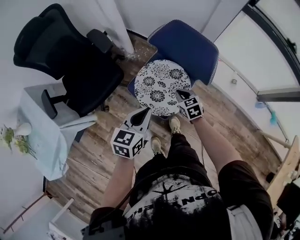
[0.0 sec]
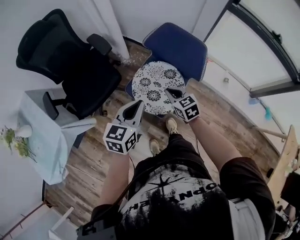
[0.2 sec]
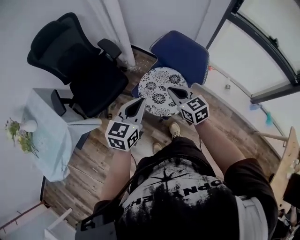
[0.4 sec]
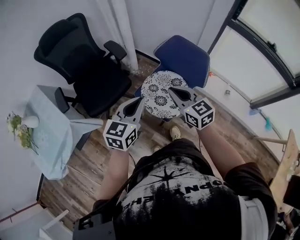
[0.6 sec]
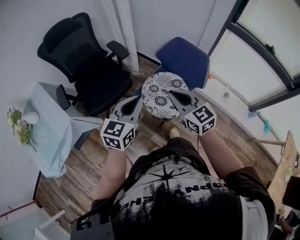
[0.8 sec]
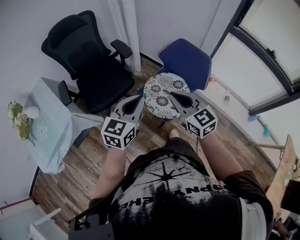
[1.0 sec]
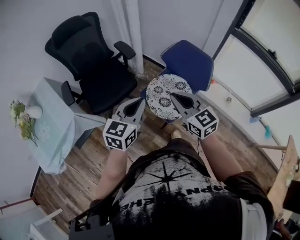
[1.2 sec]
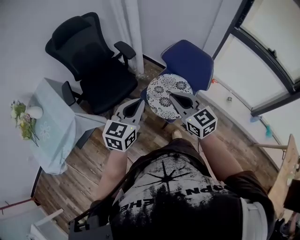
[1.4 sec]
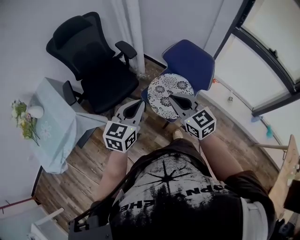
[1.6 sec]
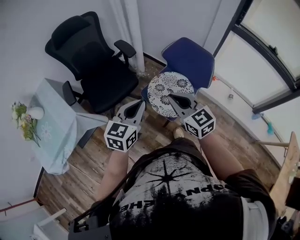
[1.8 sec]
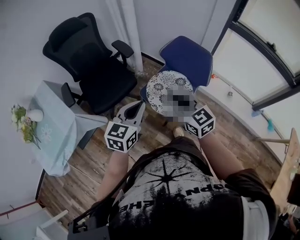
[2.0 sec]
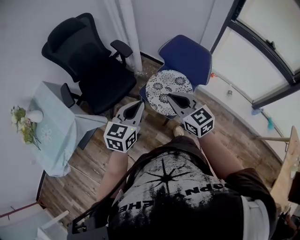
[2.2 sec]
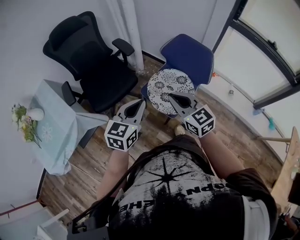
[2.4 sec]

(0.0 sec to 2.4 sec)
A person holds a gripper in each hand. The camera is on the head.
0.0 sec - 1.2 sec: The right gripper moves upward, backward and to the left, some 40 cm, and points its fingers approximately 40 degrees further upward, while the left gripper shifts roughly 20 cm upward, to the left and backward, and turns by some 20 degrees.
1.2 sec - 2.4 sec: The grippers stay close to where they were, moving slightly.

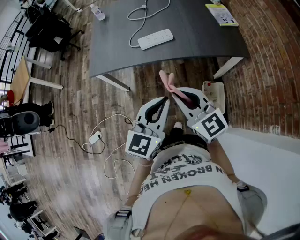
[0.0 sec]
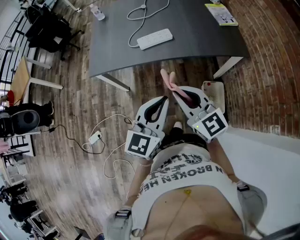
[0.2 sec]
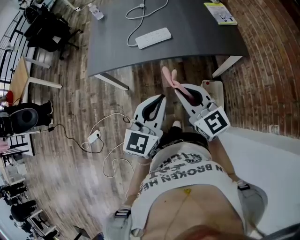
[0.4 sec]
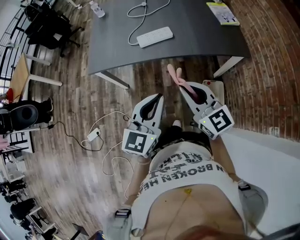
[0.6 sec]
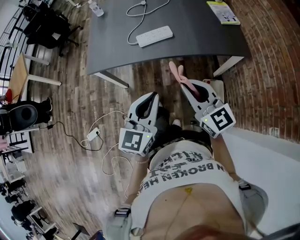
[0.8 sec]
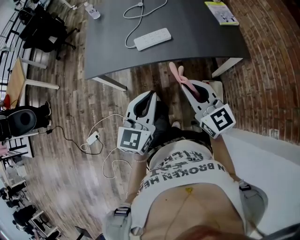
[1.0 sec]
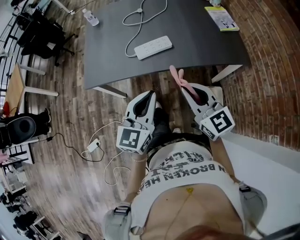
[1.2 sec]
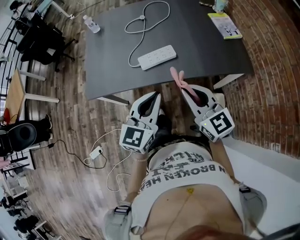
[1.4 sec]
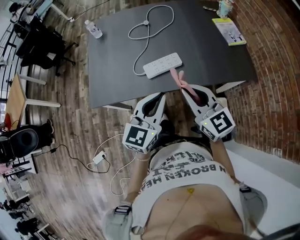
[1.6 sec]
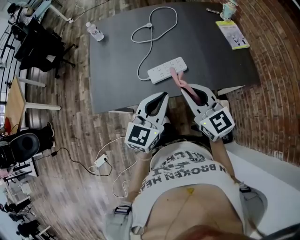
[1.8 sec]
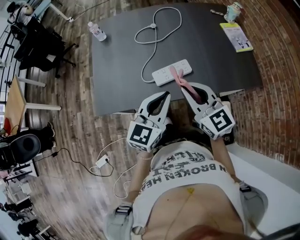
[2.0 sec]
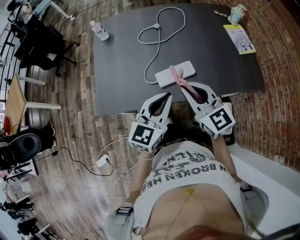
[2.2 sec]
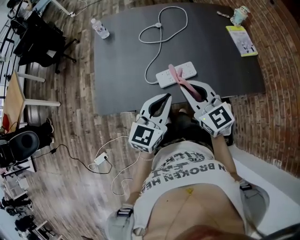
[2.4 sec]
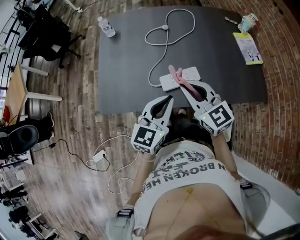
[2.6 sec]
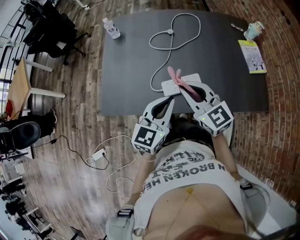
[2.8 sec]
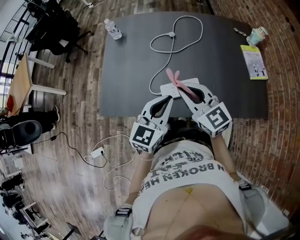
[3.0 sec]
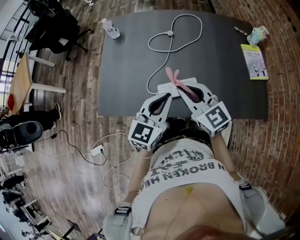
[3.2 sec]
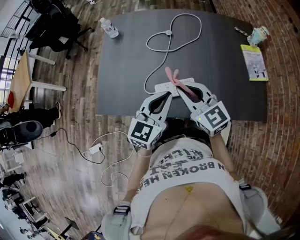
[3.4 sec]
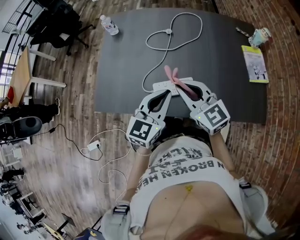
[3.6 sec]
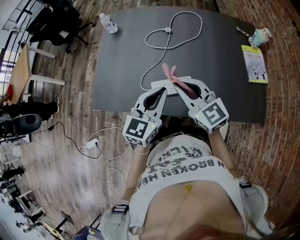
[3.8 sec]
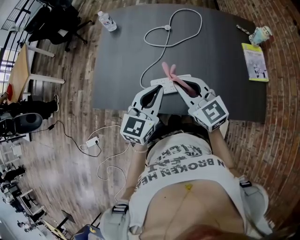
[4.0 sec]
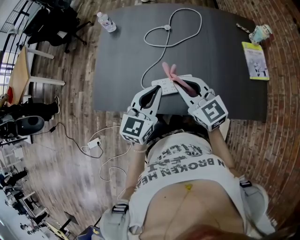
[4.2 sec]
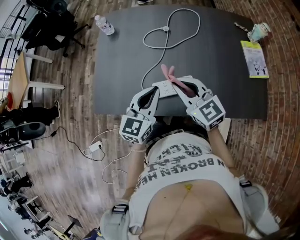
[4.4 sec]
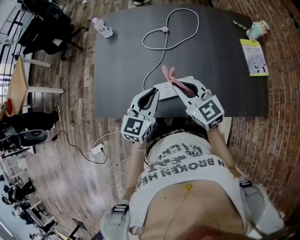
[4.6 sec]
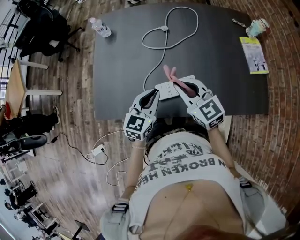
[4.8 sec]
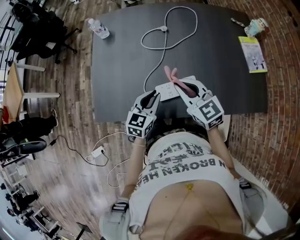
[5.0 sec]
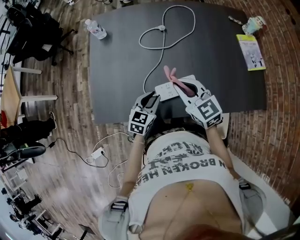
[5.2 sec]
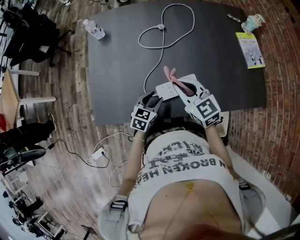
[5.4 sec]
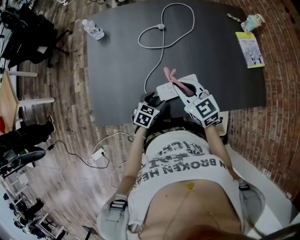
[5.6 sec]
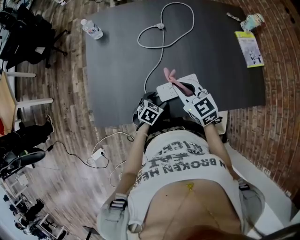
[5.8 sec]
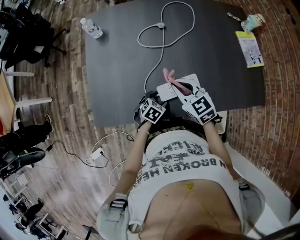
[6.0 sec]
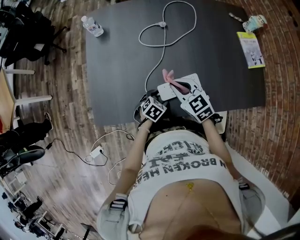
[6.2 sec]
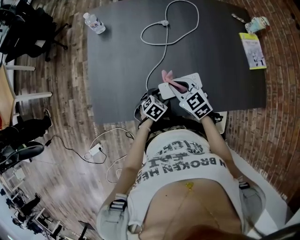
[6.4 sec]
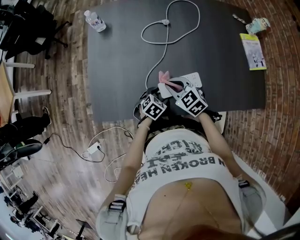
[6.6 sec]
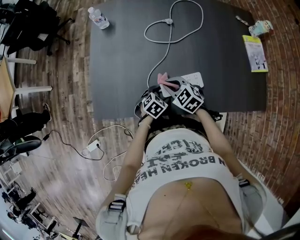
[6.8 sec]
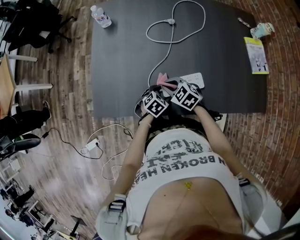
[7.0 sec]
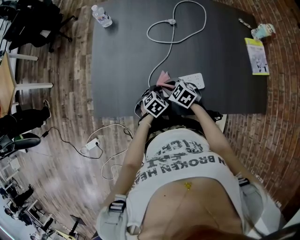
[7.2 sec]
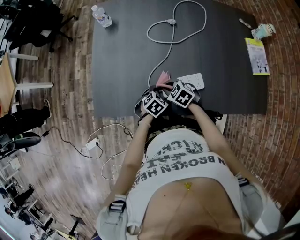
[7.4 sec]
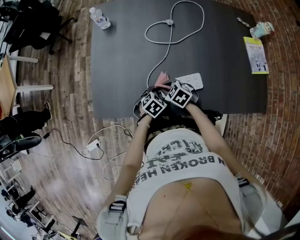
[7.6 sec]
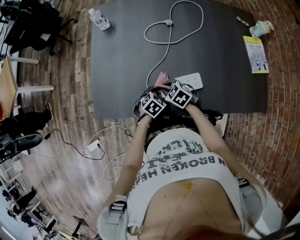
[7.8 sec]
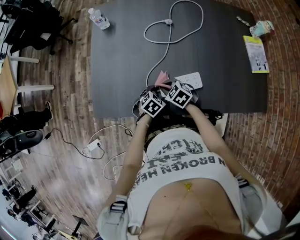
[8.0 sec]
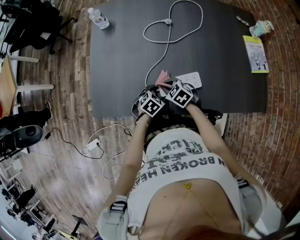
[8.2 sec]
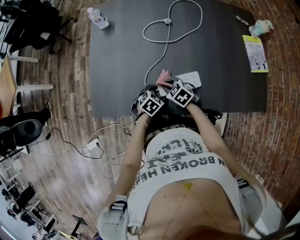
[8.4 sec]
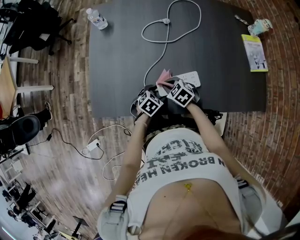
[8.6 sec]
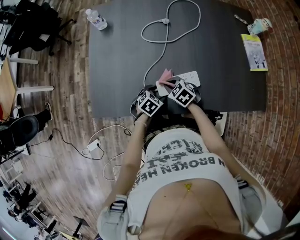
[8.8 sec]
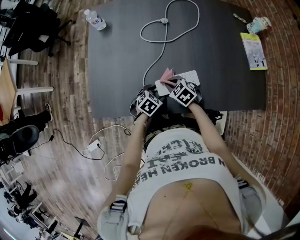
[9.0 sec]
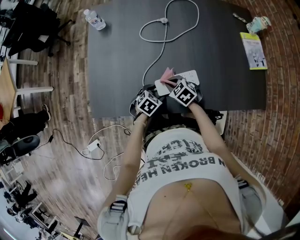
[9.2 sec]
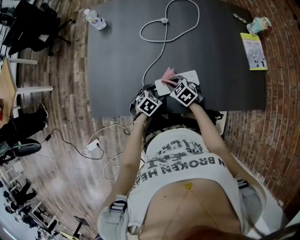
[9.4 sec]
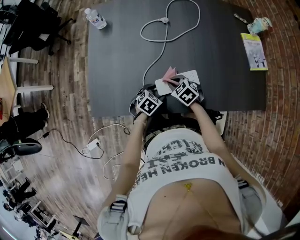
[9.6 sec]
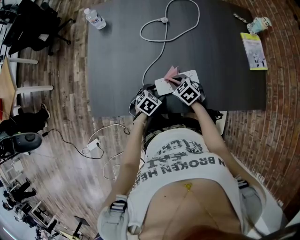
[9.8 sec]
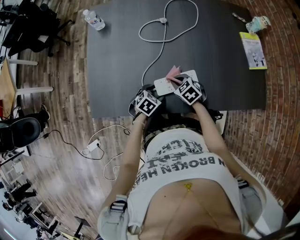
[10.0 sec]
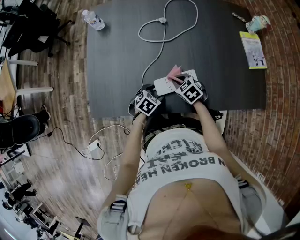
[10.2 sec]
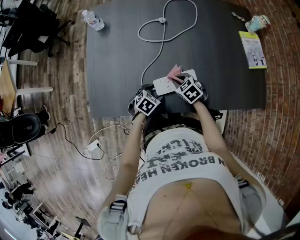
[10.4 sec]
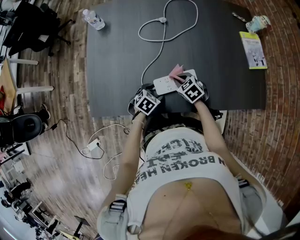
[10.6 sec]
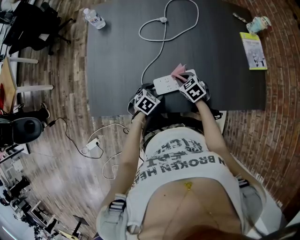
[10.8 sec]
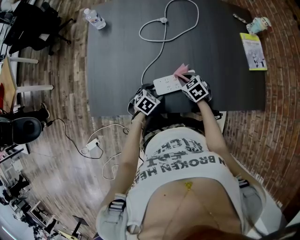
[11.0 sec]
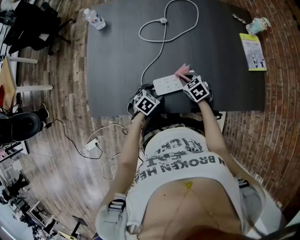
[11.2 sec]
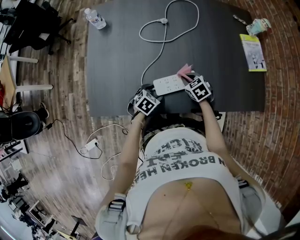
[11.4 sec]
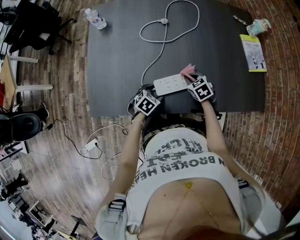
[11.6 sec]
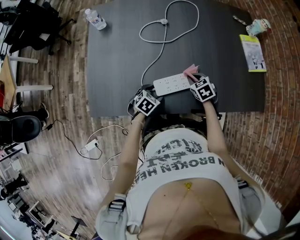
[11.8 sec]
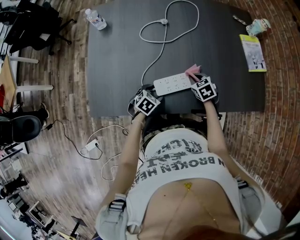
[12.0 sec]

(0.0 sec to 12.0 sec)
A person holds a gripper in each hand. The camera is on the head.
0.0 sec - 1.6 sec: Both grippers move forward, roughly 25 cm.
1.6 sec - 3.0 sec: Both grippers travel together forward, roughly 15 cm.
3.0 sec - 4.4 sec: The right gripper shifts by some 5 cm, while the left gripper changes place by about 5 cm.
4.4 sec - 6.0 sec: The right gripper moves downward and to the left, approximately 10 cm; the left gripper goes roughly 30 cm downward, points its fingers about 40 degrees further downward, and opens.
6.0 sec - 7.6 sec: The right gripper moves downward, about 15 cm, and swivels about 30 degrees.
7.6 sec - 9.0 sec: There are only small adjustments of the grippers.
9.0 sec - 10.4 sec: The right gripper shifts by about 5 cm.
10.4 sec - 12.0 sec: The right gripper heads to the right, covering approximately 10 cm.

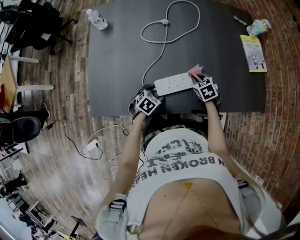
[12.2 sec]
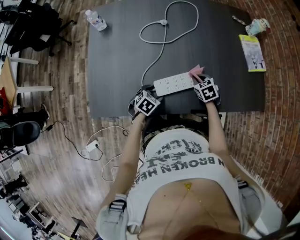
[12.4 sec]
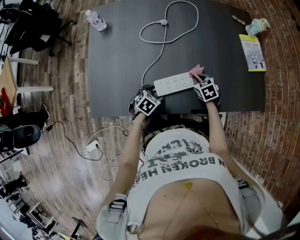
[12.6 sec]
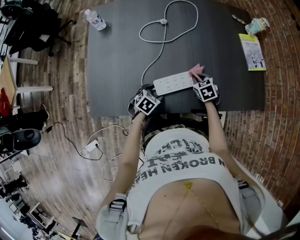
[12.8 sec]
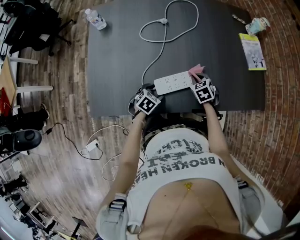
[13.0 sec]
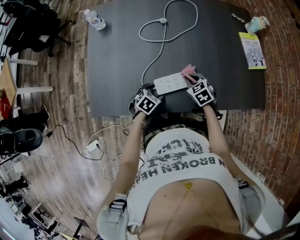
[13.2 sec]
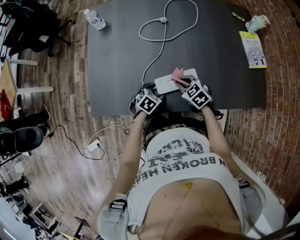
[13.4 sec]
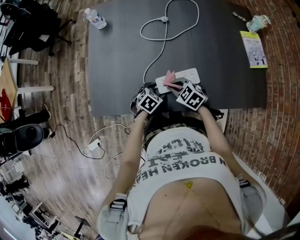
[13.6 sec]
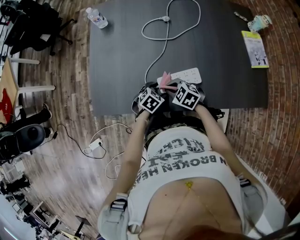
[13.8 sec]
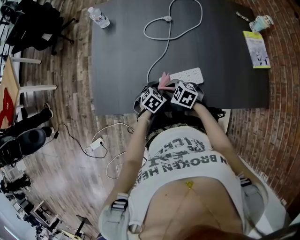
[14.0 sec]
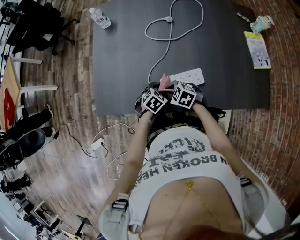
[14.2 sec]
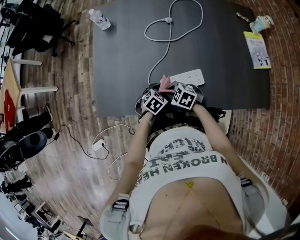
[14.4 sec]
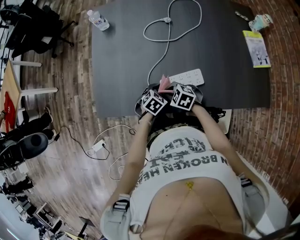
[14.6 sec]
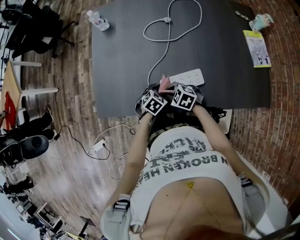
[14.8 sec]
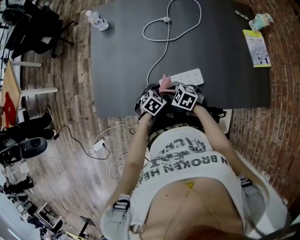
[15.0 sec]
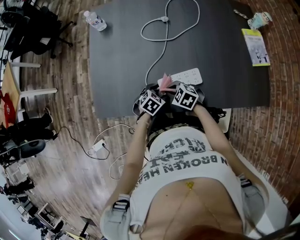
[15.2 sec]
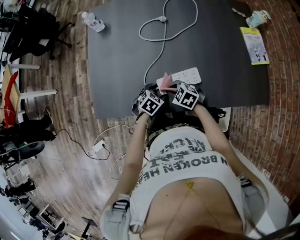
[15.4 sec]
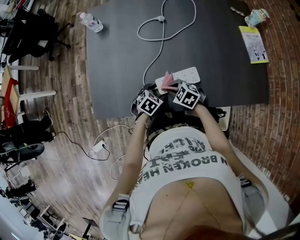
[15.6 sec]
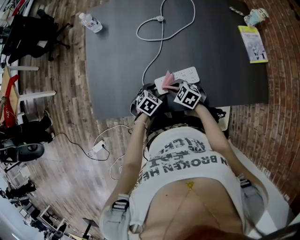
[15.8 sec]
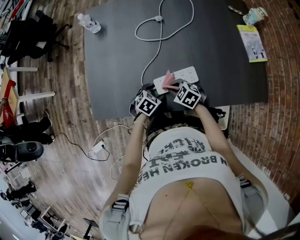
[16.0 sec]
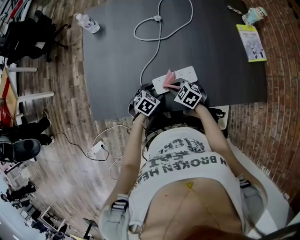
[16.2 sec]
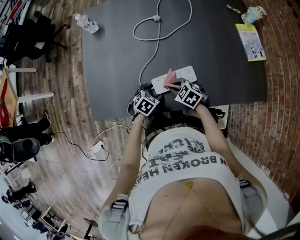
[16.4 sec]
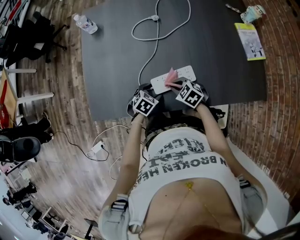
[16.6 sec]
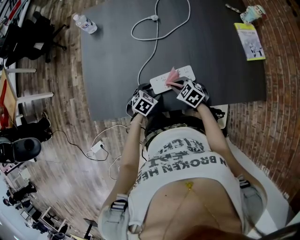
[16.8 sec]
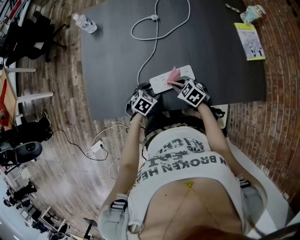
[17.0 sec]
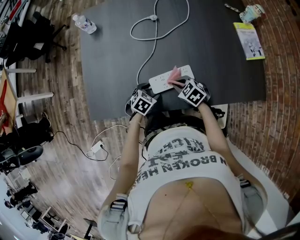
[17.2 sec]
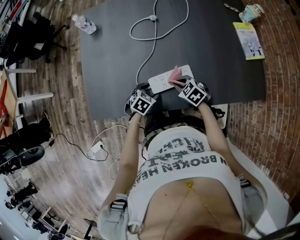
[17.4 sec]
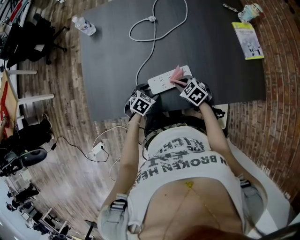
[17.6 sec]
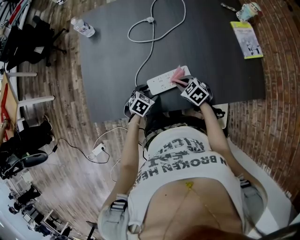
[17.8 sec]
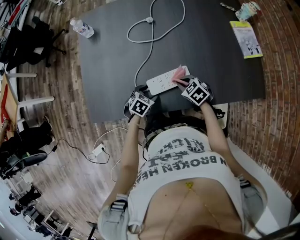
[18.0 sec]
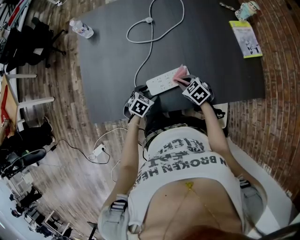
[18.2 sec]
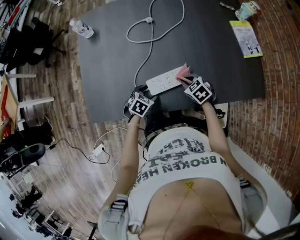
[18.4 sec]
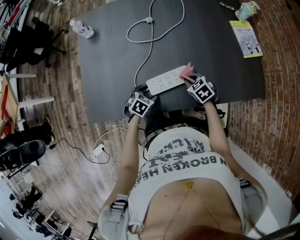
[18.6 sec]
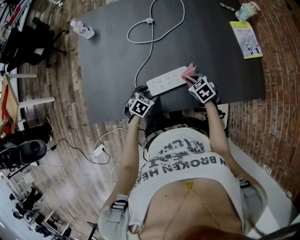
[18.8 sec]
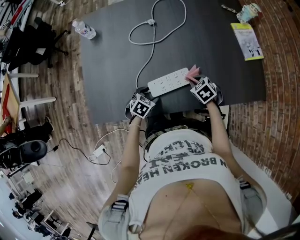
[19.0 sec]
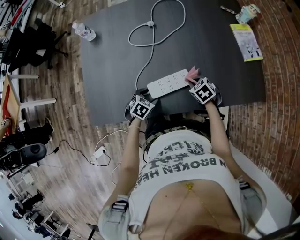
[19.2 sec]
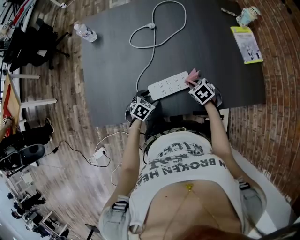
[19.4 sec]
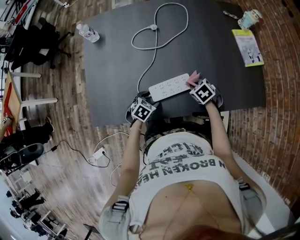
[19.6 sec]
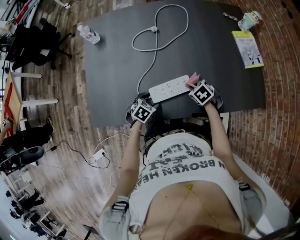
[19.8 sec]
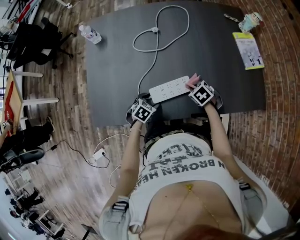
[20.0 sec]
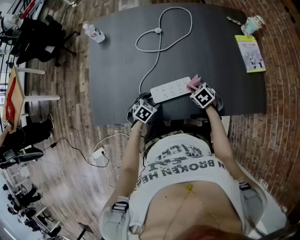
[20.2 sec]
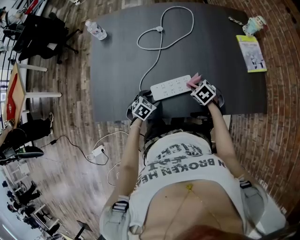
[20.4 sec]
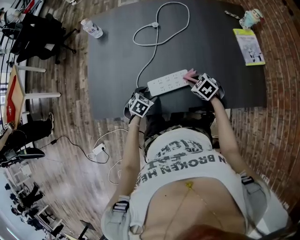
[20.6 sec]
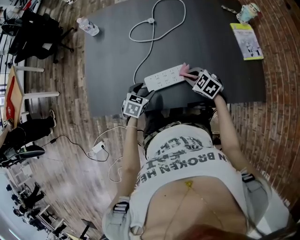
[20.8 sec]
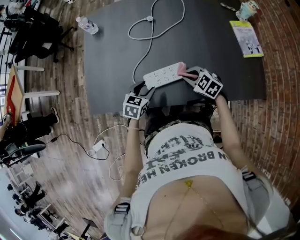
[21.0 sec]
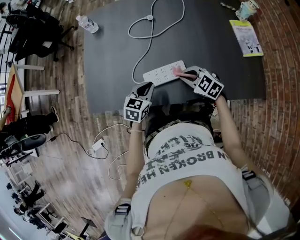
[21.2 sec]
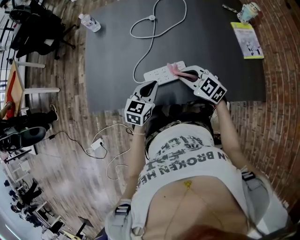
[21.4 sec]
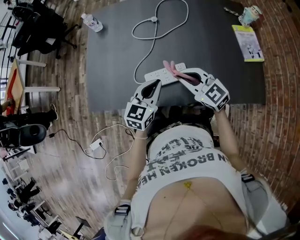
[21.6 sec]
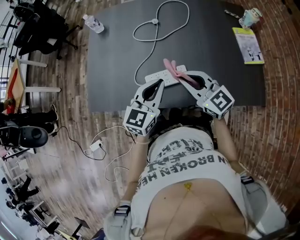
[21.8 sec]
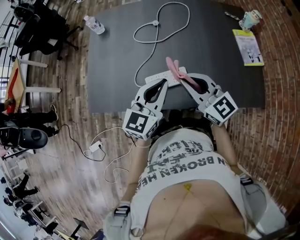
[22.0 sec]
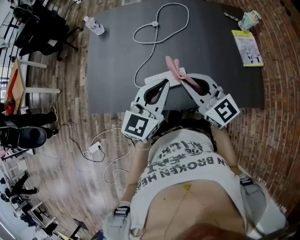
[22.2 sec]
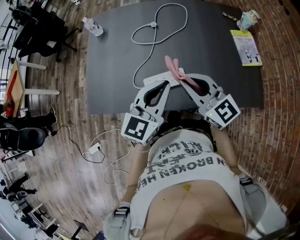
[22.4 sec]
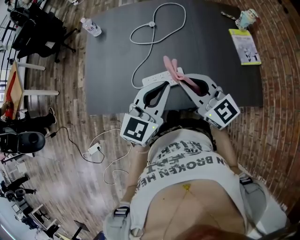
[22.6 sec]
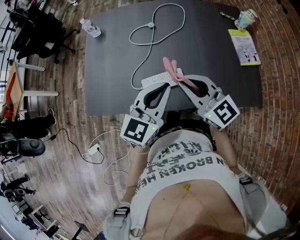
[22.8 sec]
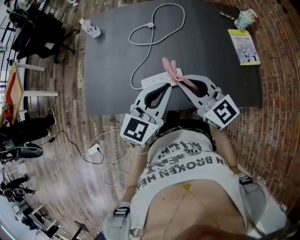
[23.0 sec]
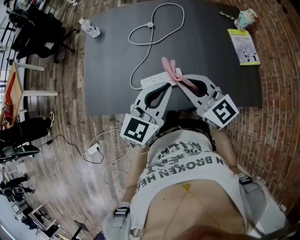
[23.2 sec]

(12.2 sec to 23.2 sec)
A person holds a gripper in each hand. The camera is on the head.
12.2 sec - 13.8 sec: The right gripper changes place by roughly 20 cm, and swivels some 40 degrees.
13.8 sec - 15.4 sec: The grippers make only small movements.
15.4 sec - 17.0 sec: The right gripper shifts by approximately 5 cm.
17.0 sec - 18.4 sec: The right gripper travels to the right by about 5 cm.
18.4 sec - 20.0 sec: The grippers stay close to where they were, moving slightly.
20.0 sec - 21.6 sec: Both grippers travel together upward, approximately 20 cm. The right gripper tips its fingers upward by roughly 60 degrees. Meanwhile the left gripper points its fingers some 40 degrees further upward, and closes.
21.6 sec - 23.2 sec: Both grippers move upward, approximately 10 cm.
